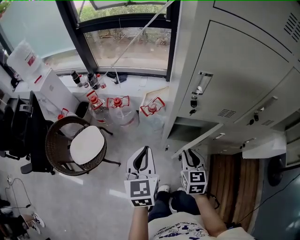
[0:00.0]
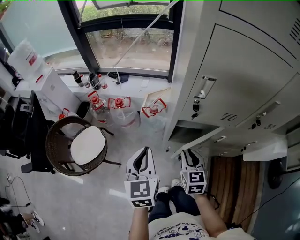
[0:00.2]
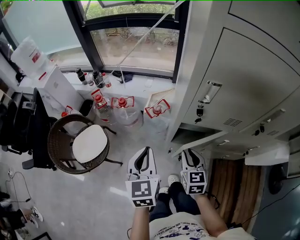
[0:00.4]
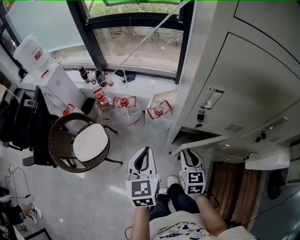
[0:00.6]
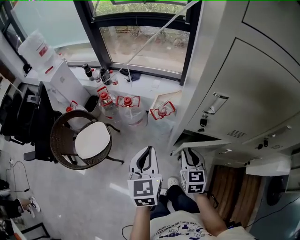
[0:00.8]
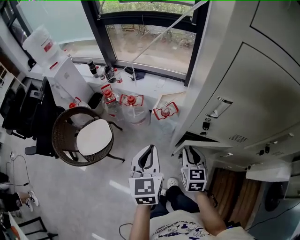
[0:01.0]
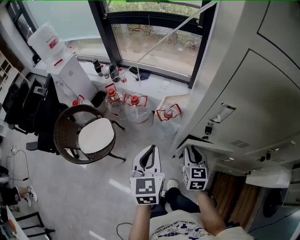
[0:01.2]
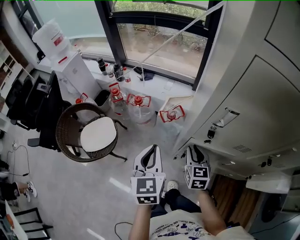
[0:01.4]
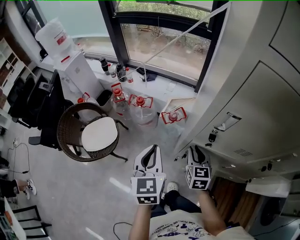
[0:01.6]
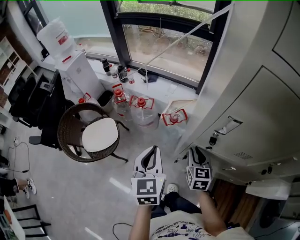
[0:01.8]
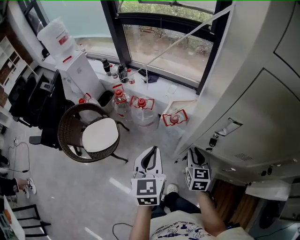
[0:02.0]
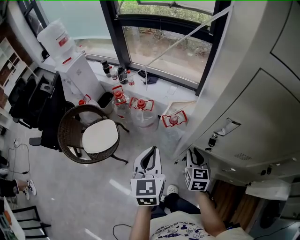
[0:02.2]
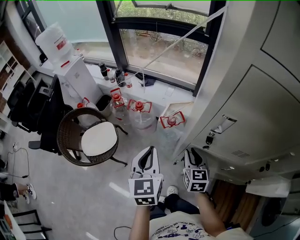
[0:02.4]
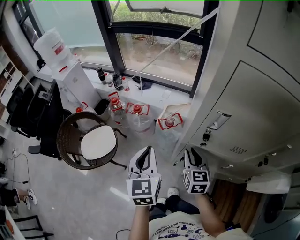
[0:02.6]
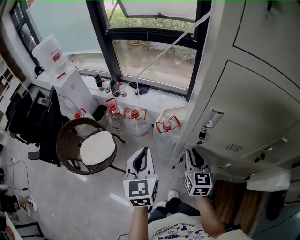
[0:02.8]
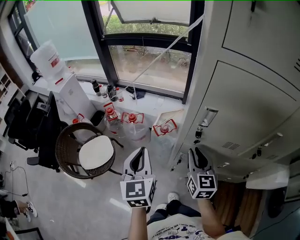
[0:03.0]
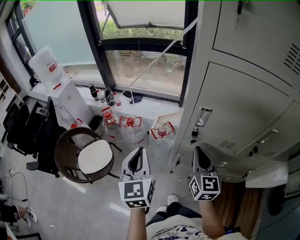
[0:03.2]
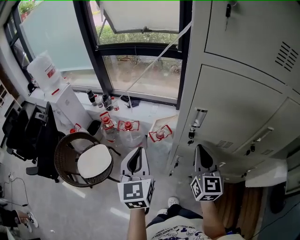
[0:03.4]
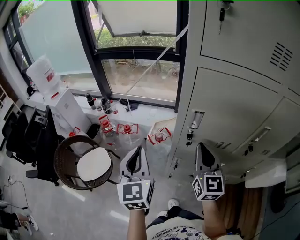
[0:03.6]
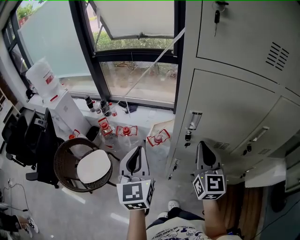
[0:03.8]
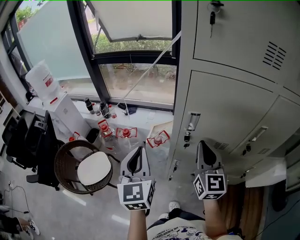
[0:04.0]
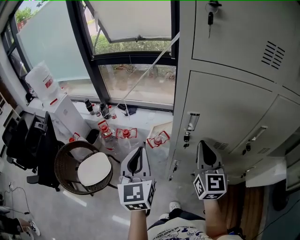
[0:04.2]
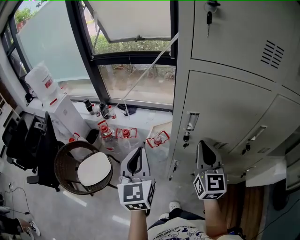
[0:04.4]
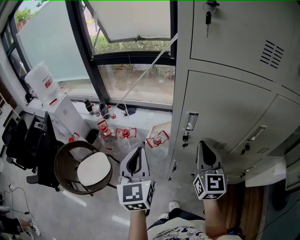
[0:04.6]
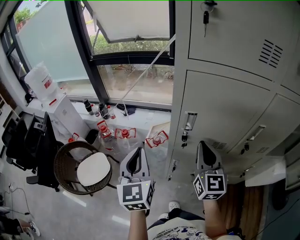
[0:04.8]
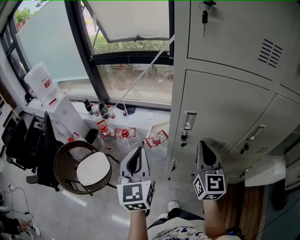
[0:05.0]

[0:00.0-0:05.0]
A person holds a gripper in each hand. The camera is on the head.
0.0 to 1.6 s: The left gripper moves forward, some 10 cm, while the right gripper travels forward by roughly 15 cm.
1.6 to 3.4 s: The right gripper goes some 20 cm upward, changes its angle by some 30 degrees, and closes up. The left gripper shifts some 10 cm upward.
3.4 to 5.0 s: The right gripper changes place by about 5 cm.

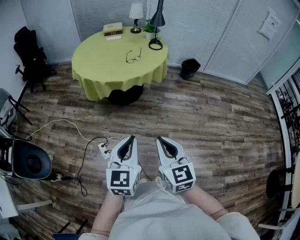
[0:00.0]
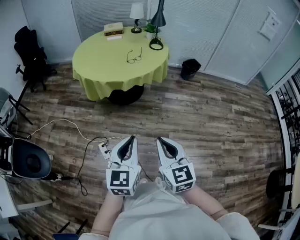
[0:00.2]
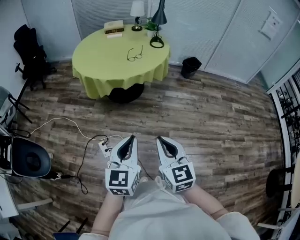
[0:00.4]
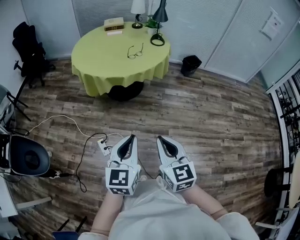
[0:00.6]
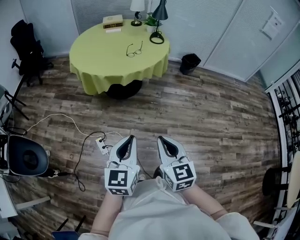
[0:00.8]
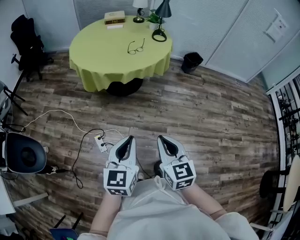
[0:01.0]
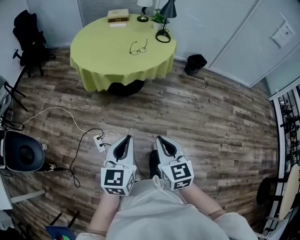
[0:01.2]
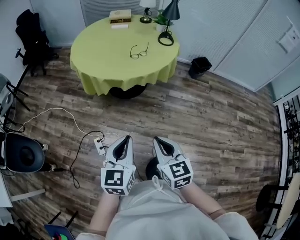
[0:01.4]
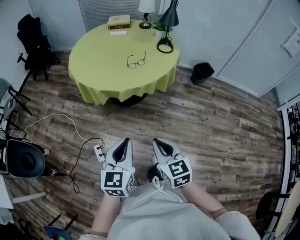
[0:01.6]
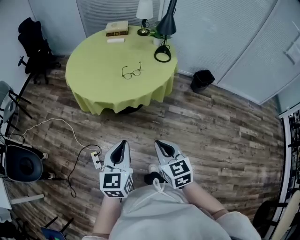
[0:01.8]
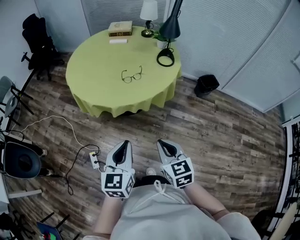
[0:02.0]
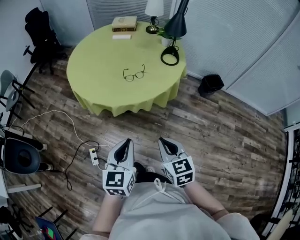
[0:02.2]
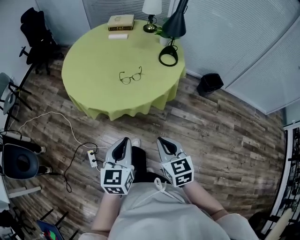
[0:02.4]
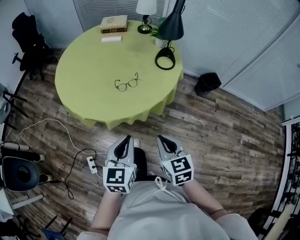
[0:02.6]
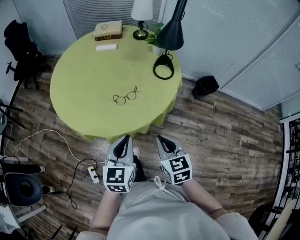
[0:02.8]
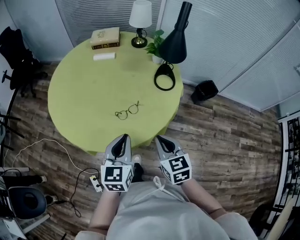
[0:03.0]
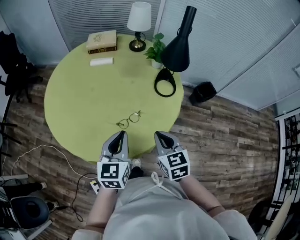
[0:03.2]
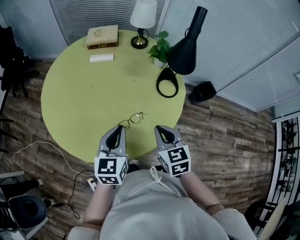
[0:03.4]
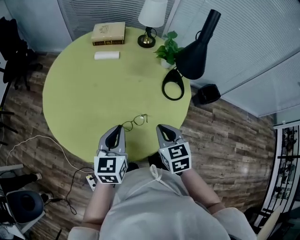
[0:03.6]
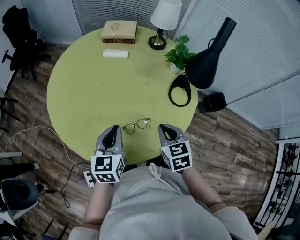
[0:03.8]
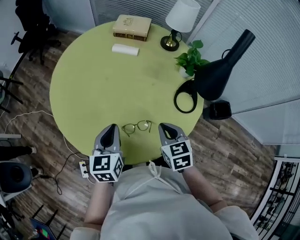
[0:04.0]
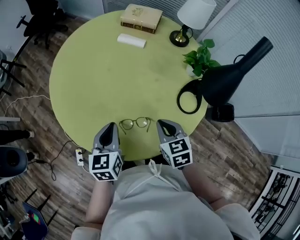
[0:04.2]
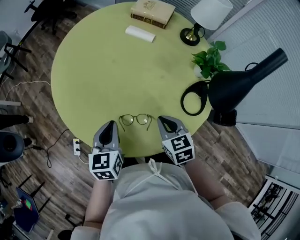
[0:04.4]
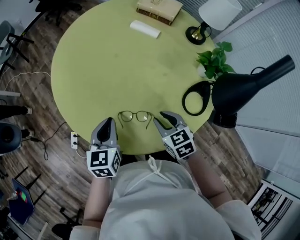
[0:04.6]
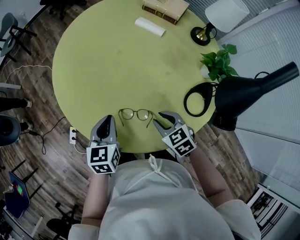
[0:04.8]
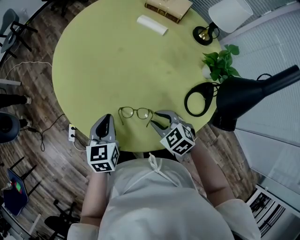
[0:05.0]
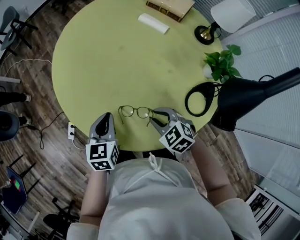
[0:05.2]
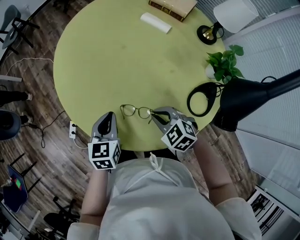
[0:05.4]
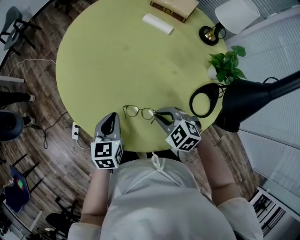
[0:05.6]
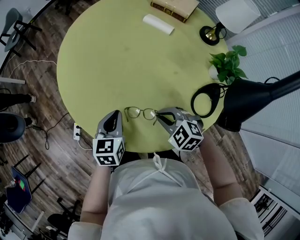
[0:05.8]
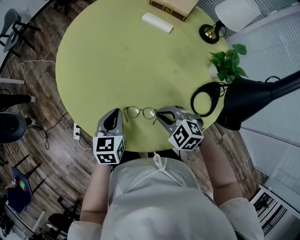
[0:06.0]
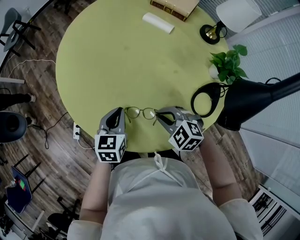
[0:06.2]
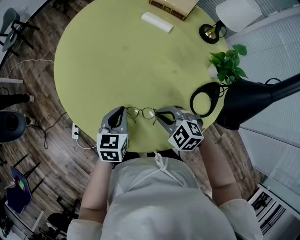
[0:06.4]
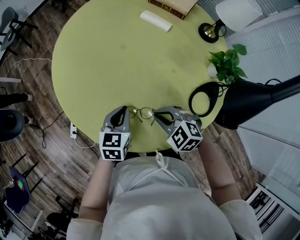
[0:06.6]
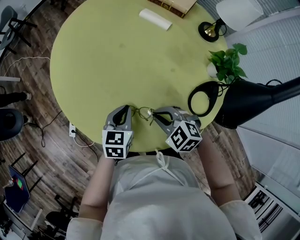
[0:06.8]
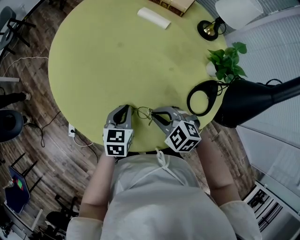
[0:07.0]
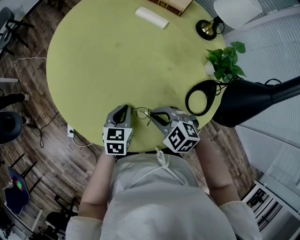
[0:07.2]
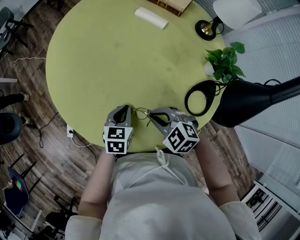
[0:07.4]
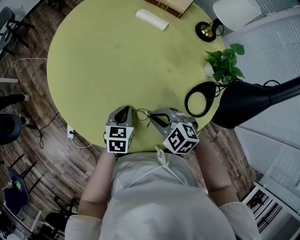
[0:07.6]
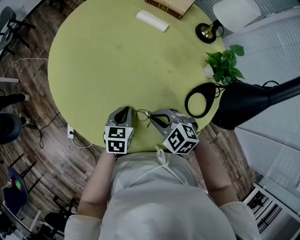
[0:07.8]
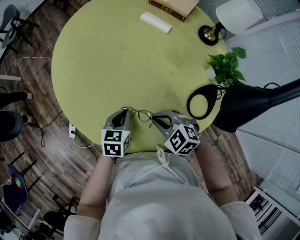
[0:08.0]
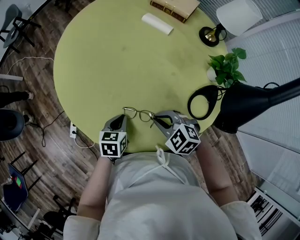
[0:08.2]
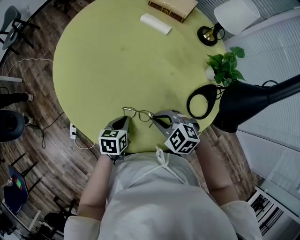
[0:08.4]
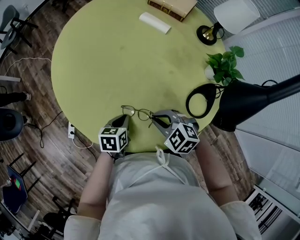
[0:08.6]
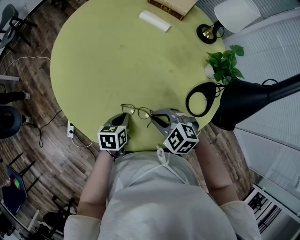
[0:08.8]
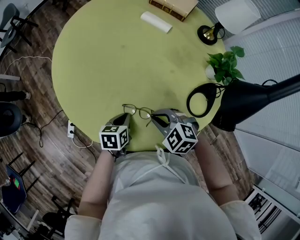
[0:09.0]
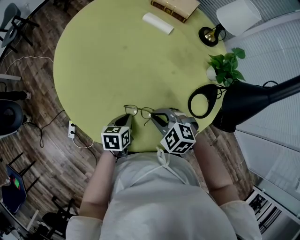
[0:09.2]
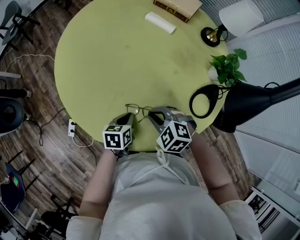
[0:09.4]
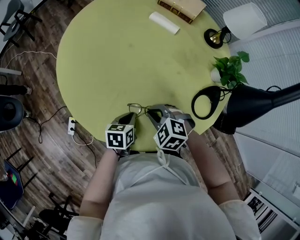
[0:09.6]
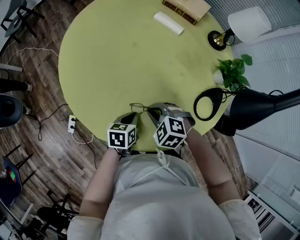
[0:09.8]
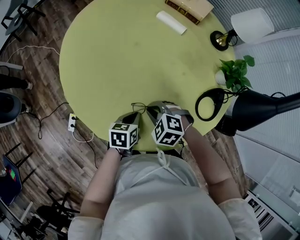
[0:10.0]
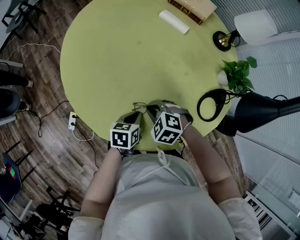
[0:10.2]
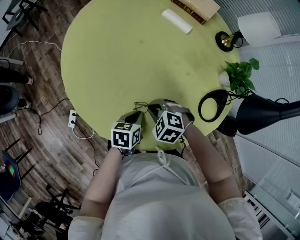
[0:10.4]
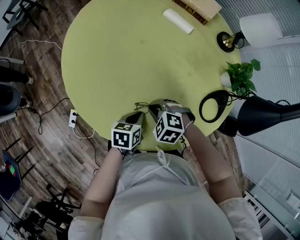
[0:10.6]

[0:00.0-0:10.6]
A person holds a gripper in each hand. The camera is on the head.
0.0 to 1.6 s: The grippers both shift forward by approximately 20 cm.
1.6 to 3.0 s: The two grippers travel together, forward, some 40 cm.
3.0 to 4.6 s: The left gripper shifts by approximately 20 cm, and turns by about 40 degrees, while the right gripper moves some 25 cm, rotates roughly 40 degrees, and opens up.
4.6 to 6.0 s: The right gripper swivels roughly 40 degrees, and closes its fingers. The left gripper moves downward, approximately 5 cm.
6.0 to 7.6 s: The left gripper shifts roughly 10 cm downward and to the right.
7.6 to 9.0 s: The left gripper changes place by about 5 cm.
9.0 to 10.6 s: The right gripper moves to the left and downward, roughly 10 cm.

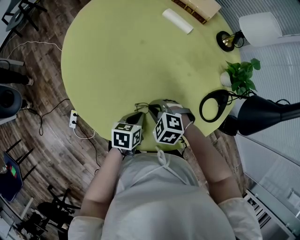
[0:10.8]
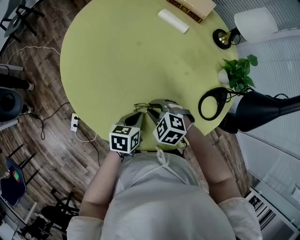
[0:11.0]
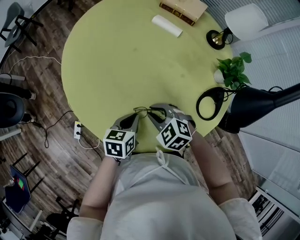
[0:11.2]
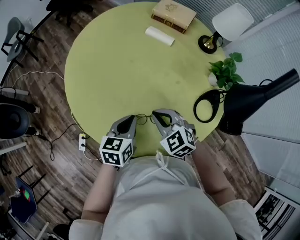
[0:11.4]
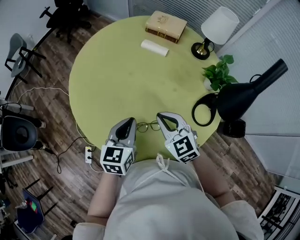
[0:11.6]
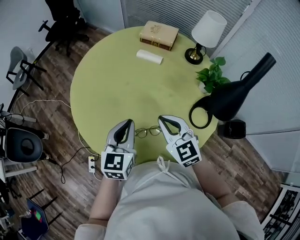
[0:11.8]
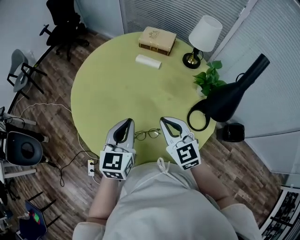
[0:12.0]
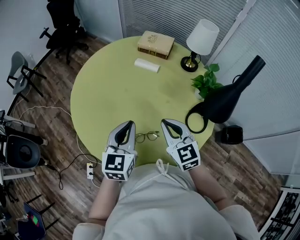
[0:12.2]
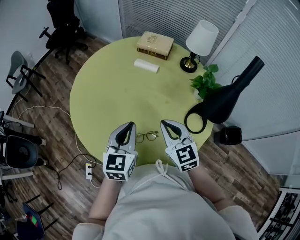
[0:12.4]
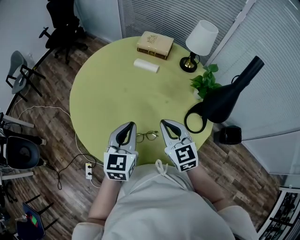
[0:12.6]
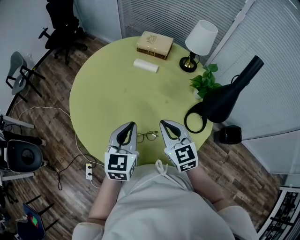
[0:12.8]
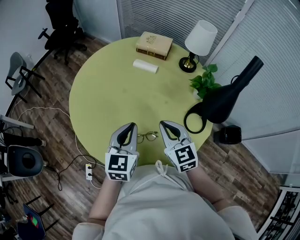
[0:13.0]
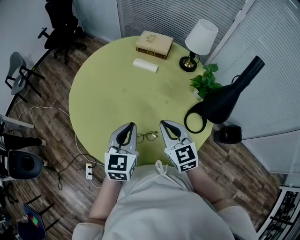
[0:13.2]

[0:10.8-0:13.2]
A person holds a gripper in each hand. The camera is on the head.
10.8 to 12.0 s: The grippers both shift upward by about 25 cm. The right gripper tilts its fingers about 50 degrees upward, while the left gripper points its fingers approximately 30 degrees further upward.
12.0 to 13.2 s: The grippers stay close to where they were, moving slightly.

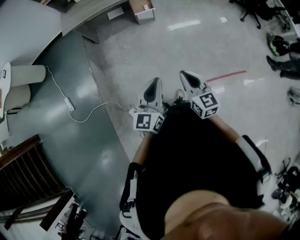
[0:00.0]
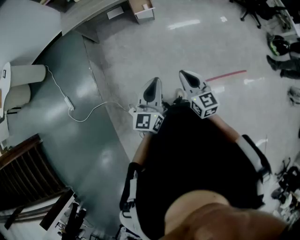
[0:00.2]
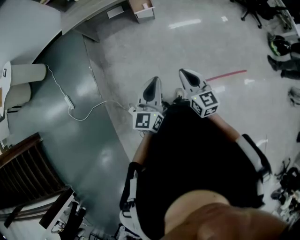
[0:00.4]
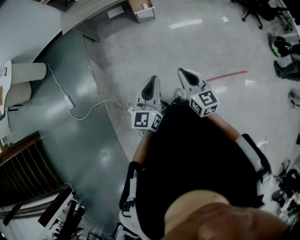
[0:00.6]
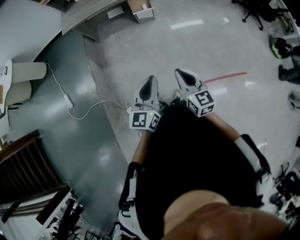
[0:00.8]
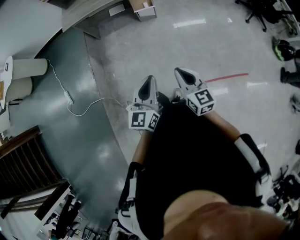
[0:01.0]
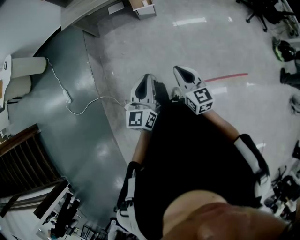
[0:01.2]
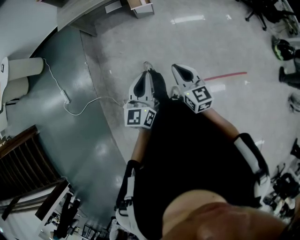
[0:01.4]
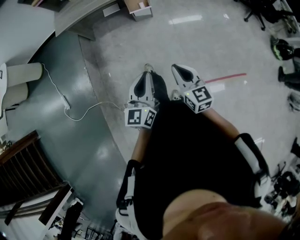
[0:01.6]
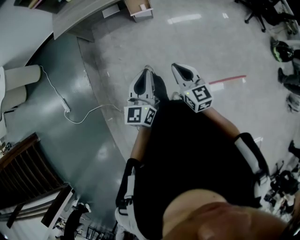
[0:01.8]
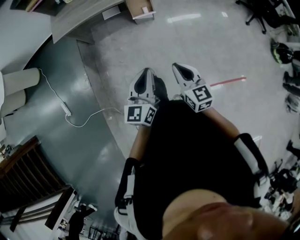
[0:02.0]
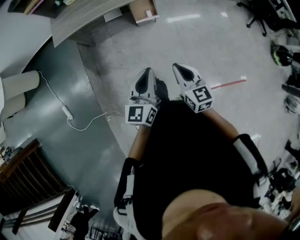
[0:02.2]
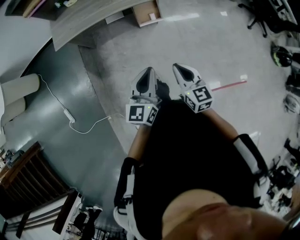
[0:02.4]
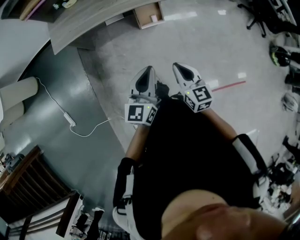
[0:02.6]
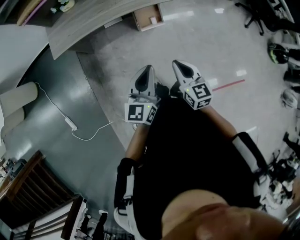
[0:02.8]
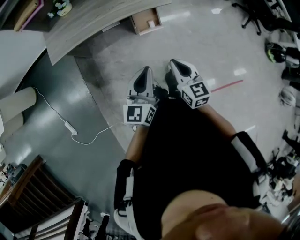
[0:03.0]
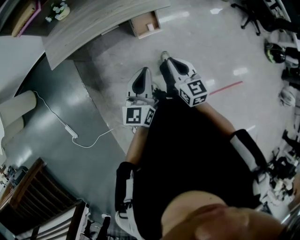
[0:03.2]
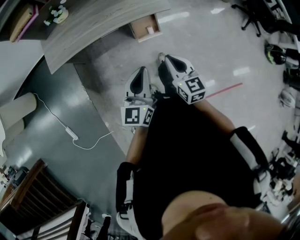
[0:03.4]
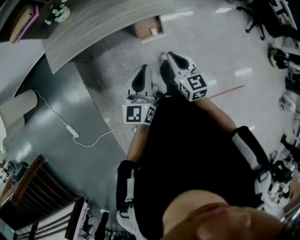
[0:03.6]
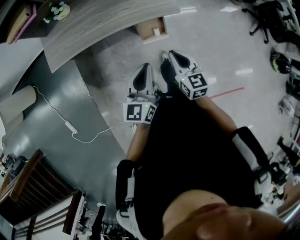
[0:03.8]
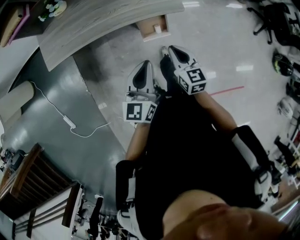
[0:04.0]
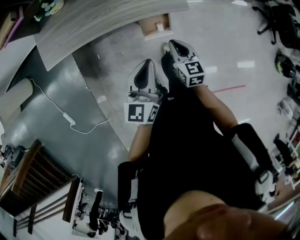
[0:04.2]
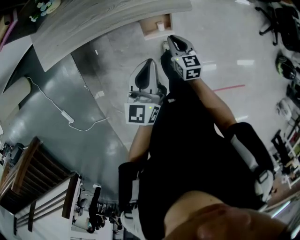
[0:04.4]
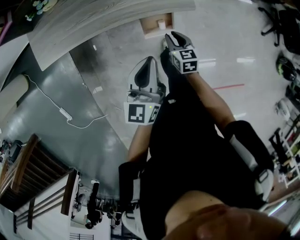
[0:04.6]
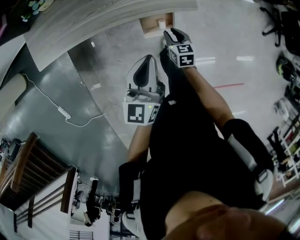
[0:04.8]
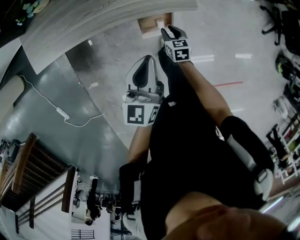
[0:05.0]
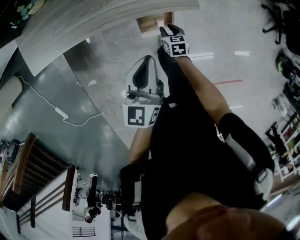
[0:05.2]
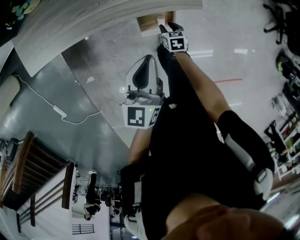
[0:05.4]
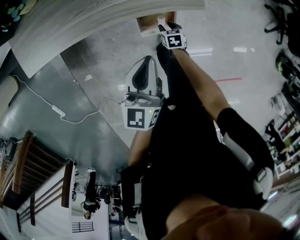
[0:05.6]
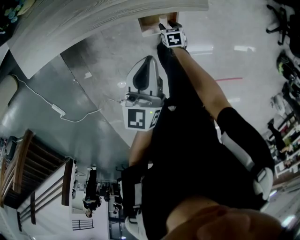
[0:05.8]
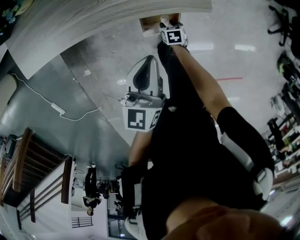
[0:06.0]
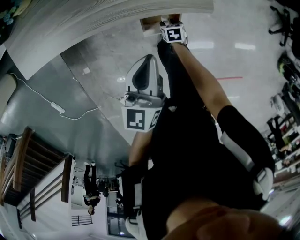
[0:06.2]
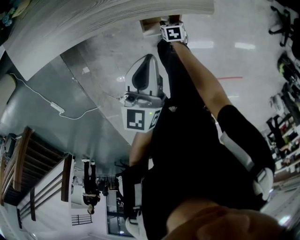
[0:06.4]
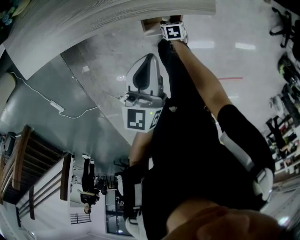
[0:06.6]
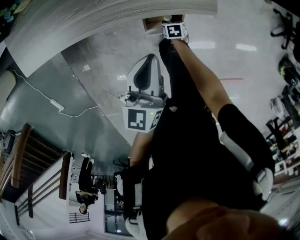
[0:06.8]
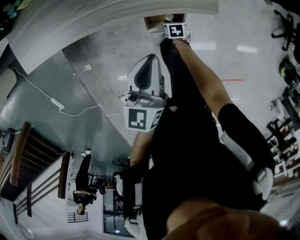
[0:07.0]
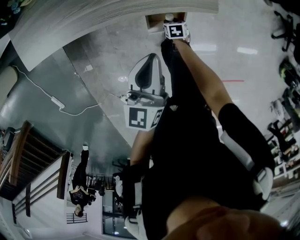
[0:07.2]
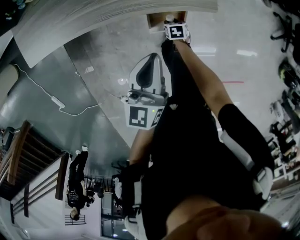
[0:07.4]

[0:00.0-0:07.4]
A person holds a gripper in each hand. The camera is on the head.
0.0 to 1.4 s: The right gripper heads forward, covering some 5 cm, while the left gripper ends up approximately 5 cm from where it was.
1.4 to 3.0 s: The two grippers travel together, forward, some 40 cm.
3.0 to 4.4 s: The right gripper goes about 35 cm forward and downward; the left gripper moves forward, roughly 25 cm.
4.4 to 6.0 s: The right gripper shifts roughly 30 cm downward, tilts its fingers about 30 degrees downward, and opens up. The left gripper shifts some 15 cm downward and forward.
6.0 to 7.4 s: There are only small adjustments of the grippers.
